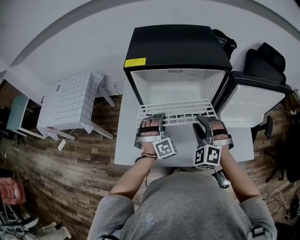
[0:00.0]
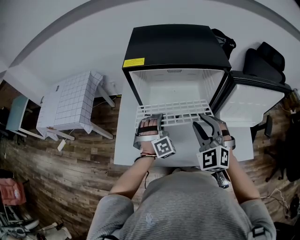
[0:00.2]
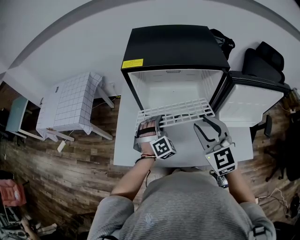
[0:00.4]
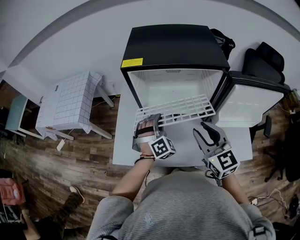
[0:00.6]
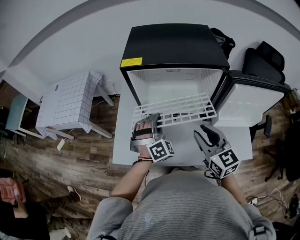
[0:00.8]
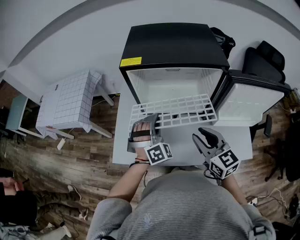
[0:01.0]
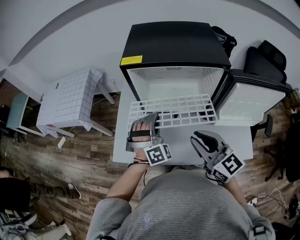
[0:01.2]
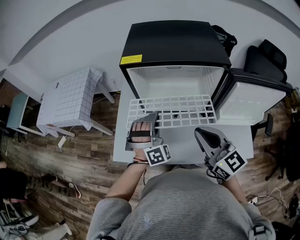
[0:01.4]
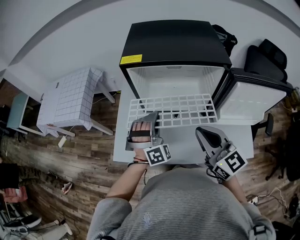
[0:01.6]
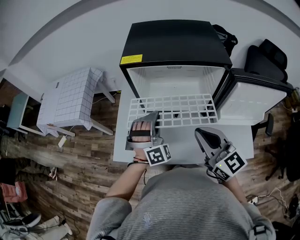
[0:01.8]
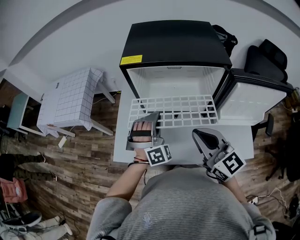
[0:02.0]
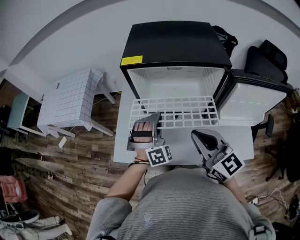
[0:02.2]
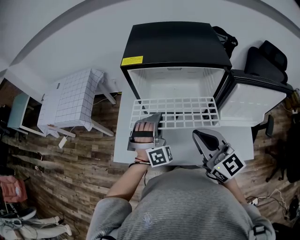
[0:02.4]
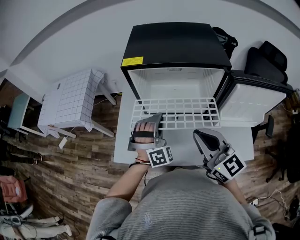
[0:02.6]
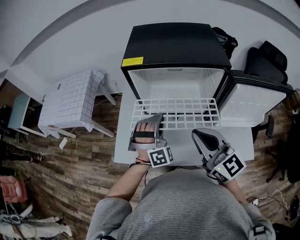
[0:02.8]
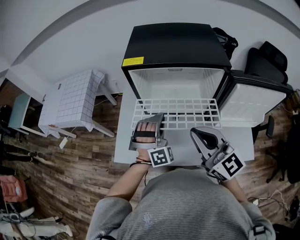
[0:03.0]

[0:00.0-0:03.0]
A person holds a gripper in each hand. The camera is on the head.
0:00.0 to 0:01.6: The right gripper moves up and down over some 10 cm, changing direction 2 times, twists approximately 60 degrees clockwise, seen from behind, and closes, while the left gripper travels upward by roughly 5 cm.
0:01.6 to 0:03.0: The grippers move only a little.

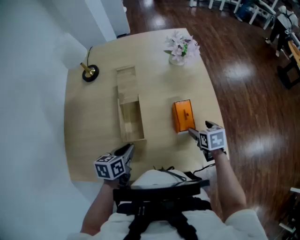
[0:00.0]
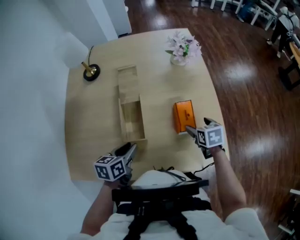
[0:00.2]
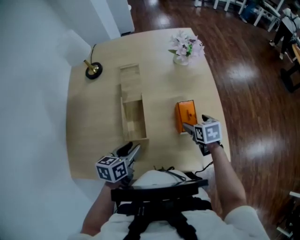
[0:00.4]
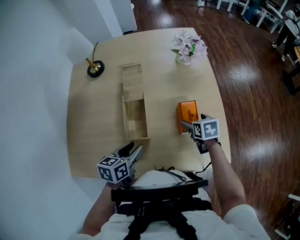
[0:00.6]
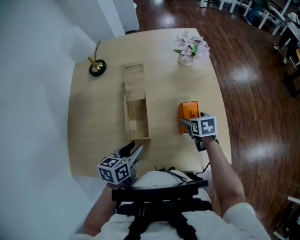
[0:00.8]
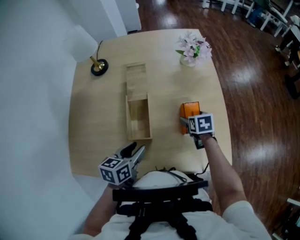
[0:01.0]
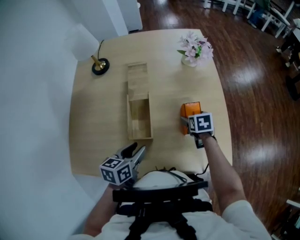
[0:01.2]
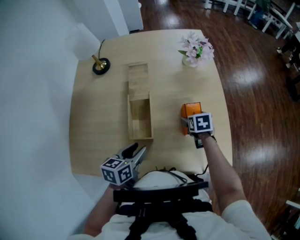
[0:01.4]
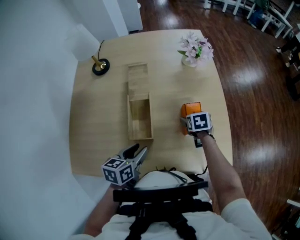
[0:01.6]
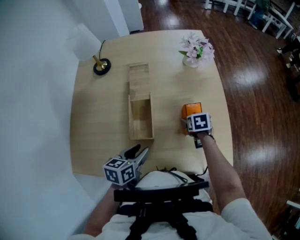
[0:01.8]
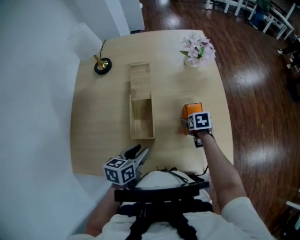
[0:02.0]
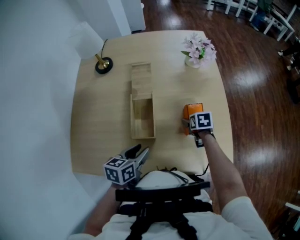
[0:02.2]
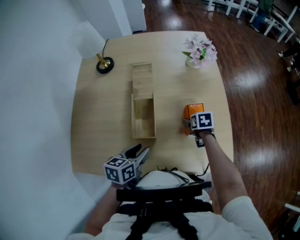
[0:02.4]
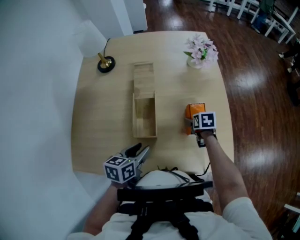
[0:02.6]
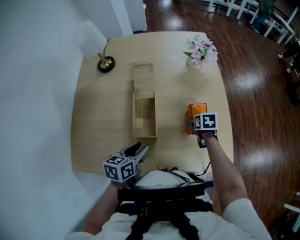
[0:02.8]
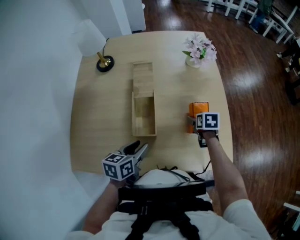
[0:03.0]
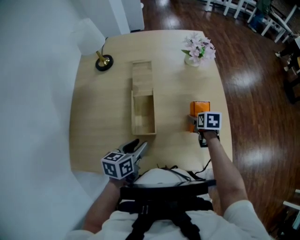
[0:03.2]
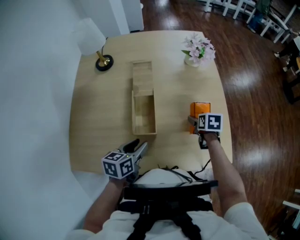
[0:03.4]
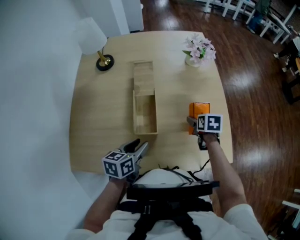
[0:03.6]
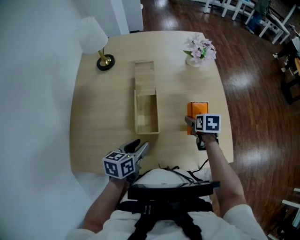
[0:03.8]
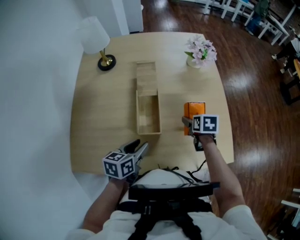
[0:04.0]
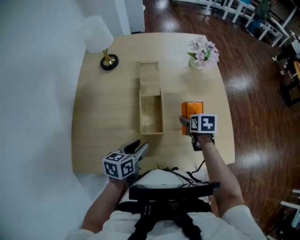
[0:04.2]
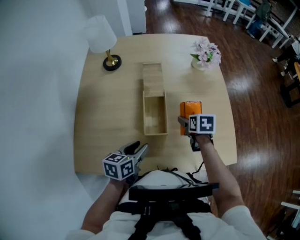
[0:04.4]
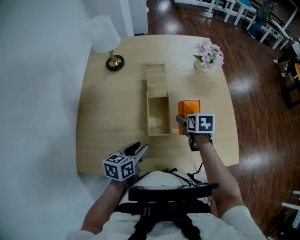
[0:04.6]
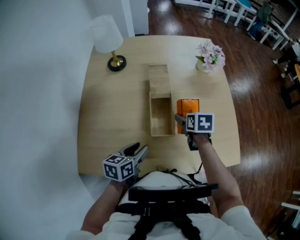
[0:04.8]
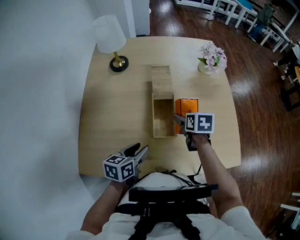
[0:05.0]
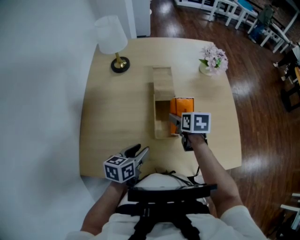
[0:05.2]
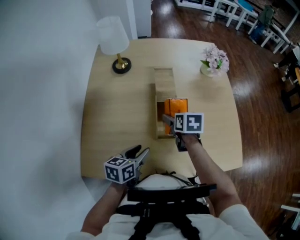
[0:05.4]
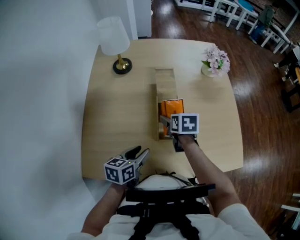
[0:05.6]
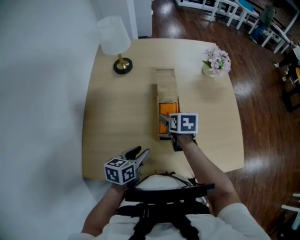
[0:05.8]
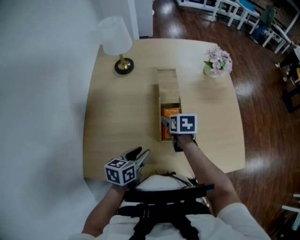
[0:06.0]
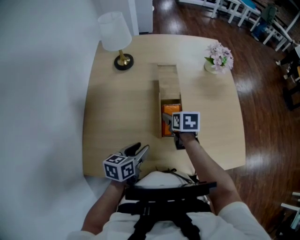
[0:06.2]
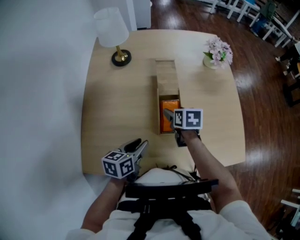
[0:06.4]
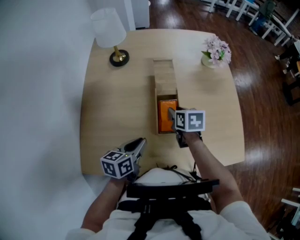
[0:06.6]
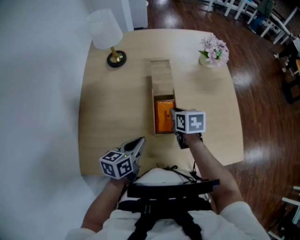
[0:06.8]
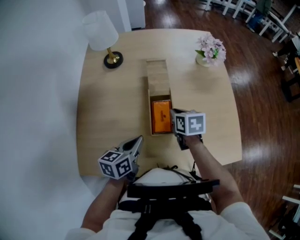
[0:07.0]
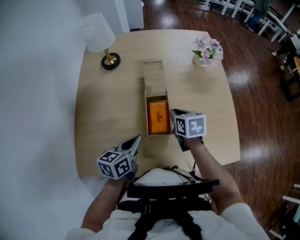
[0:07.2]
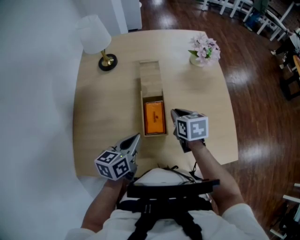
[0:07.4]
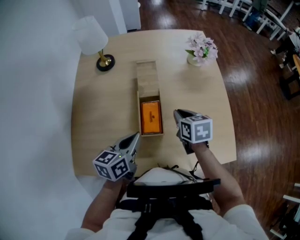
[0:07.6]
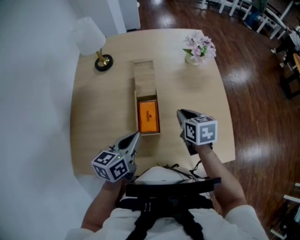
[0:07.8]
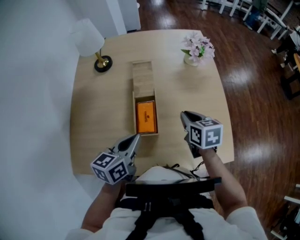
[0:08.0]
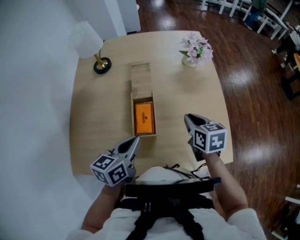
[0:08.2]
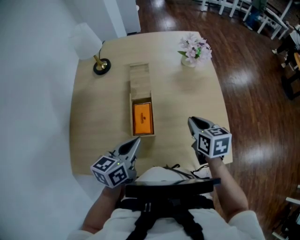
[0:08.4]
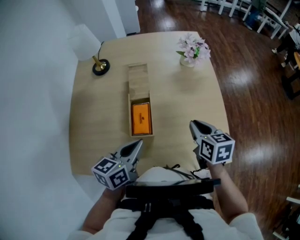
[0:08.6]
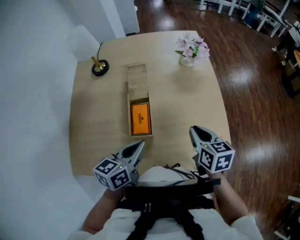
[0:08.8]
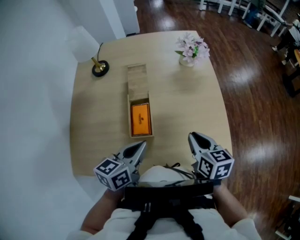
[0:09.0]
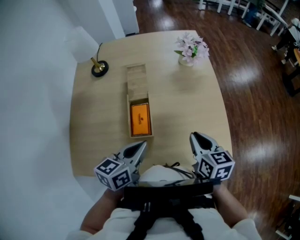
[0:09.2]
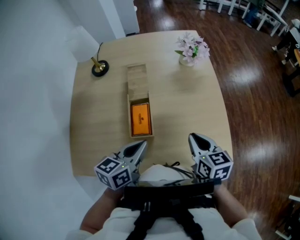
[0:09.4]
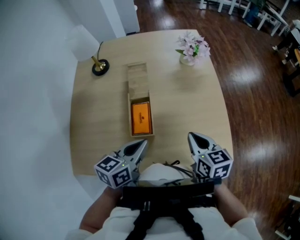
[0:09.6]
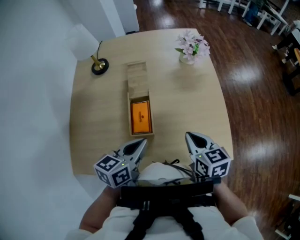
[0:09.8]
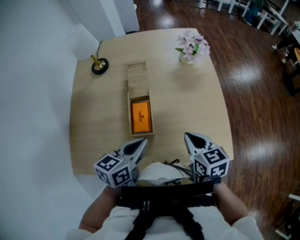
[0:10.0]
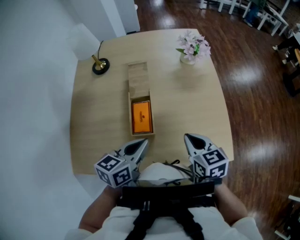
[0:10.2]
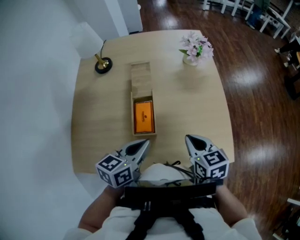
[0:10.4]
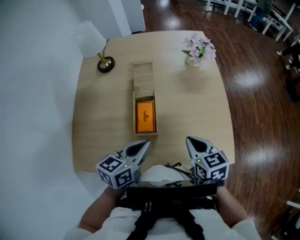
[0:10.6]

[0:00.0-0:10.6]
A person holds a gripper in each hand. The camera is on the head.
0:00.0 to 0:01.6: The right gripper travels forward and to the left by about 10 cm. Meanwhile the left gripper opens its fingers.
0:01.6 to 0:03.0: The grippers move only a little.
0:03.0 to 0:04.6: The right gripper heads to the left and upward, covering some 15 cm; the left gripper shifts about 5 cm to the left.
0:04.6 to 0:06.0: The right gripper heads to the left, covering some 15 cm; the left gripper travels to the left by about 5 cm.
0:06.0 to 0:07.6: The right gripper travels to the right and upward by some 15 cm, and closes up. Meanwhile the left gripper heads upward and to the right, covering approximately 10 cm, and closes up.
0:07.6 to 0:09.0: The right gripper shifts some 15 cm to the right and backward. Meanwhile the left gripper shifts about 10 cm to the right.
0:09.0 to 0:10.6: The grippers move only a little.

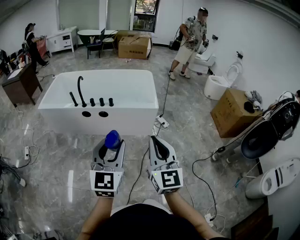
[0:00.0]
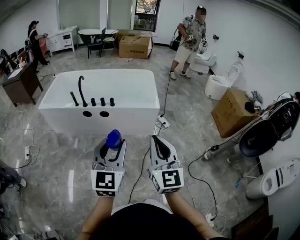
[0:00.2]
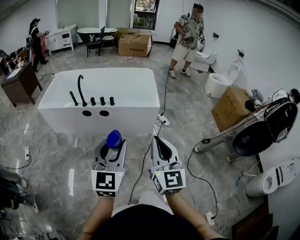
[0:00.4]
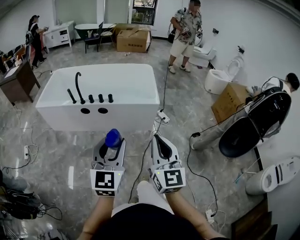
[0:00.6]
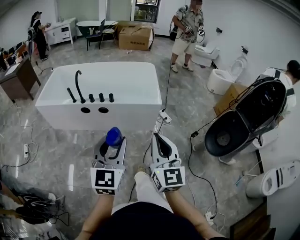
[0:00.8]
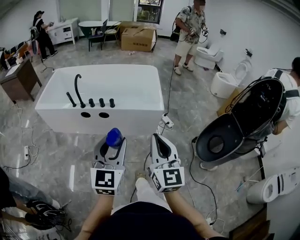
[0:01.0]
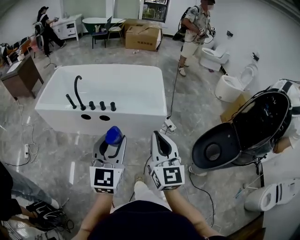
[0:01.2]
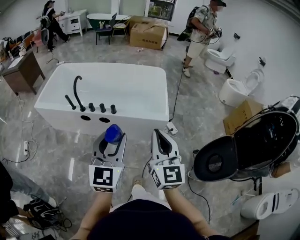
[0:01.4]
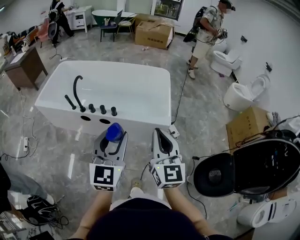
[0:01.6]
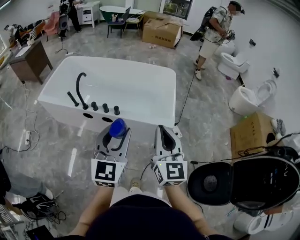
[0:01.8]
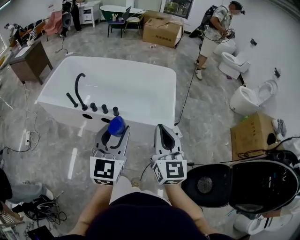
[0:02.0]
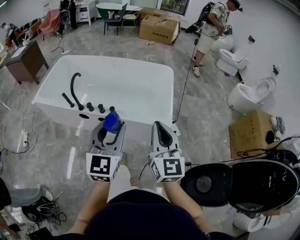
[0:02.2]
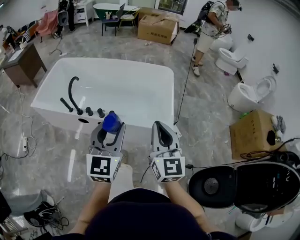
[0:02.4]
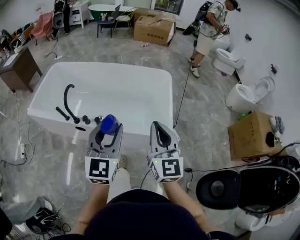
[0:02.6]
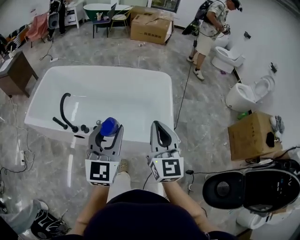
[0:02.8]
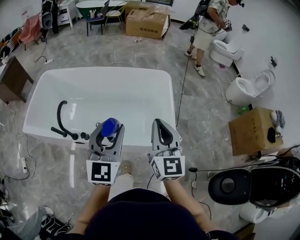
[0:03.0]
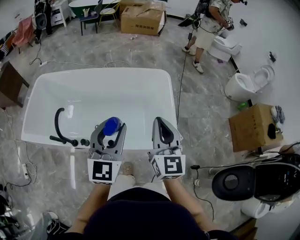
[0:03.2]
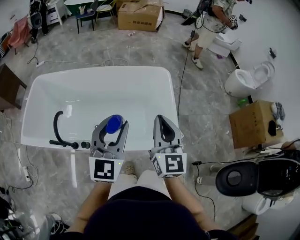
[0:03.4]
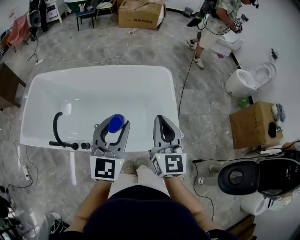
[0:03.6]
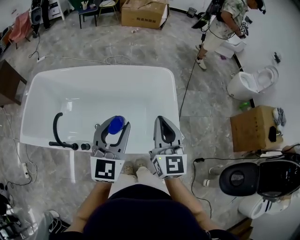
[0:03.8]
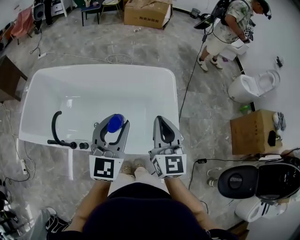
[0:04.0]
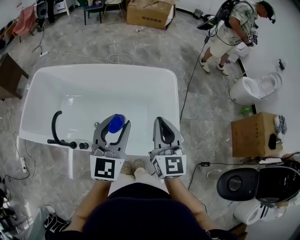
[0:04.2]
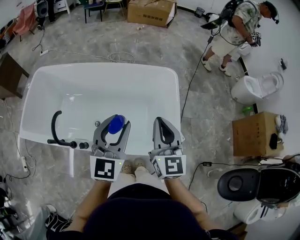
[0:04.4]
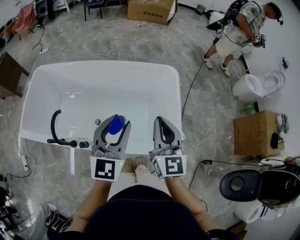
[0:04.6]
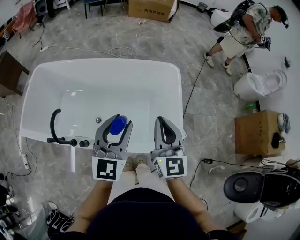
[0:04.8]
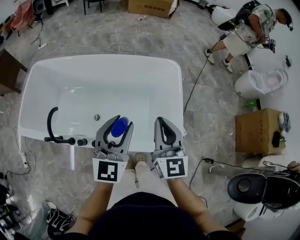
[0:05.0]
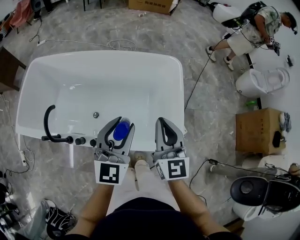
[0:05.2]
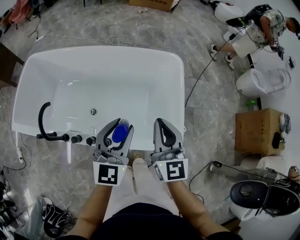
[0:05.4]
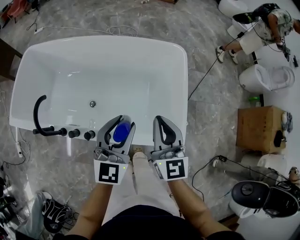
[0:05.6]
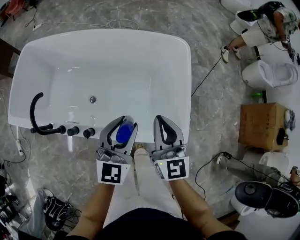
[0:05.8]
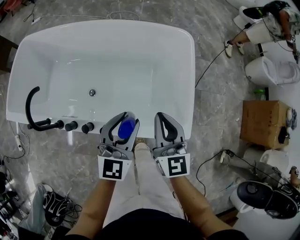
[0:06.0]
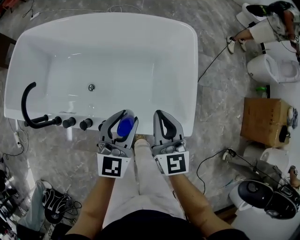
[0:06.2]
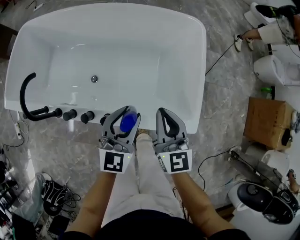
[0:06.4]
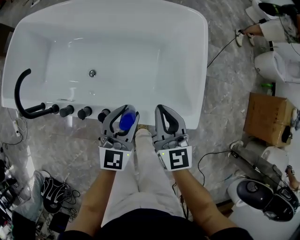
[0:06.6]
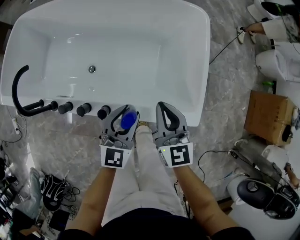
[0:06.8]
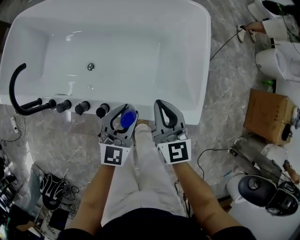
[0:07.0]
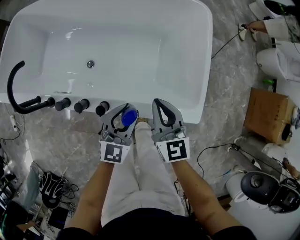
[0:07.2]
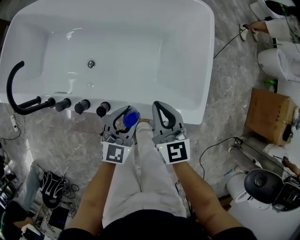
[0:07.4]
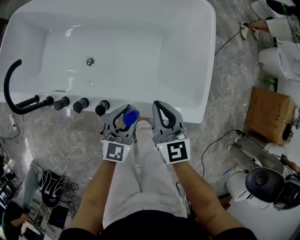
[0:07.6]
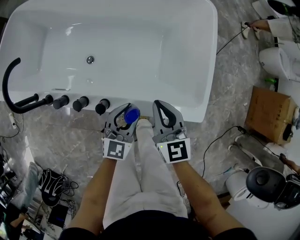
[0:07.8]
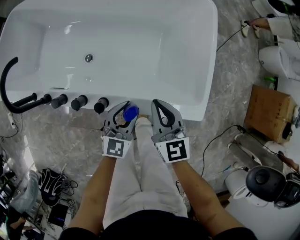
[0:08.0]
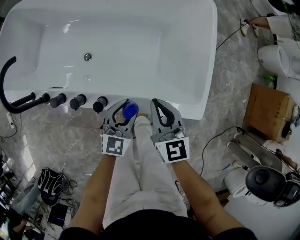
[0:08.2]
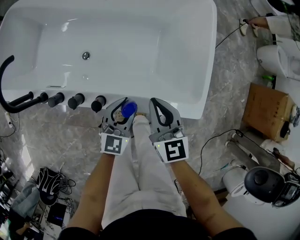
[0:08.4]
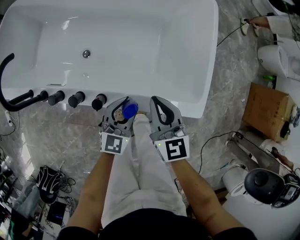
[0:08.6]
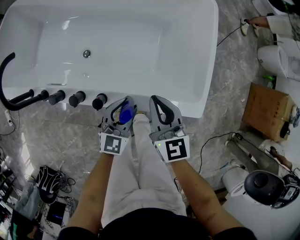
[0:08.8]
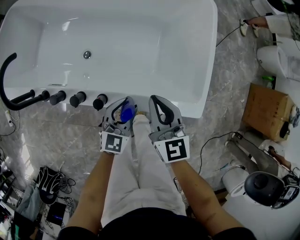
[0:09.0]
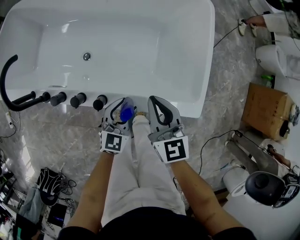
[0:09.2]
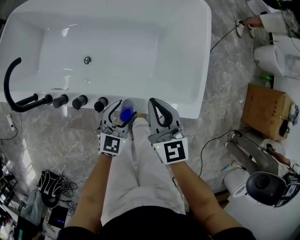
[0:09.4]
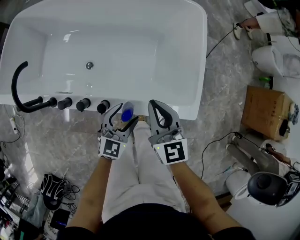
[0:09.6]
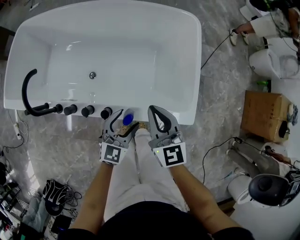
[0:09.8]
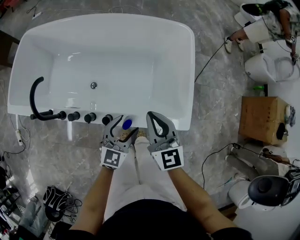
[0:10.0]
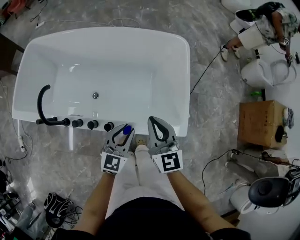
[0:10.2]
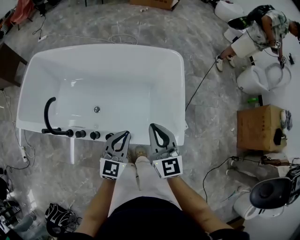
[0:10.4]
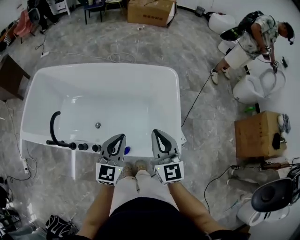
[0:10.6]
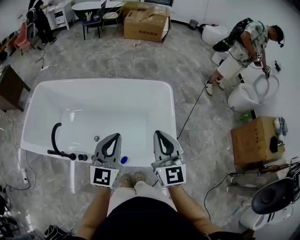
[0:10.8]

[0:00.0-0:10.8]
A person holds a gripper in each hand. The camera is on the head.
0:00.0 to 0:01.6: The grippers both shift forward by some 35 cm.
0:01.6 to 0:03.0: Both grippers move forward, some 30 cm.
0:03.0 to 0:04.6: Both grippers travel together forward, some 15 cm.
0:04.6 to 0:06.2: The grippers both shift downward by approximately 20 cm.
0:06.2 to 0:07.8: The grippers both shift downward by approximately 15 cm.
0:07.8 to 0:09.2: There are only small adjustments of the grippers.
0:09.2 to 0:10.8: Both grippers travel together upward, some 35 cm. The left gripper changes its angle by roughly 30 degrees, and closes its fingers. The right gripper rotates roughly 30 degrees.
